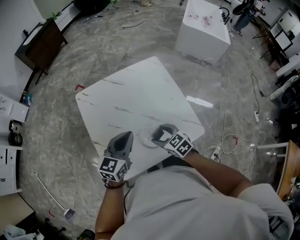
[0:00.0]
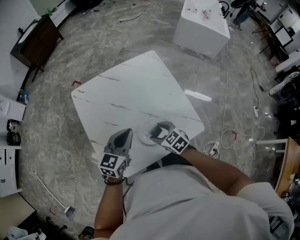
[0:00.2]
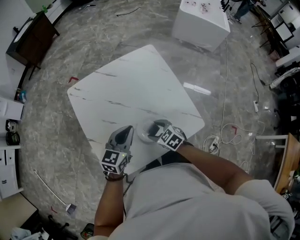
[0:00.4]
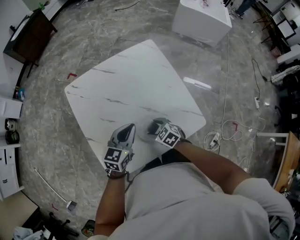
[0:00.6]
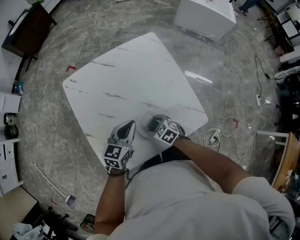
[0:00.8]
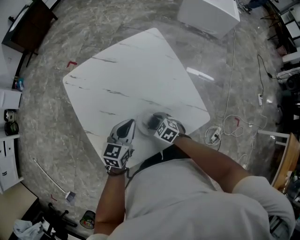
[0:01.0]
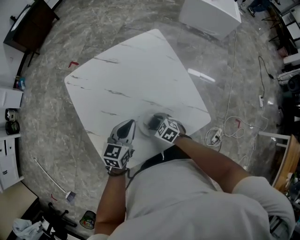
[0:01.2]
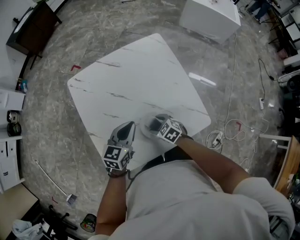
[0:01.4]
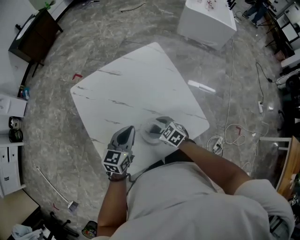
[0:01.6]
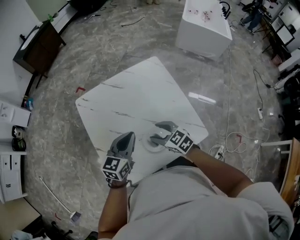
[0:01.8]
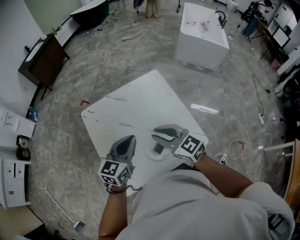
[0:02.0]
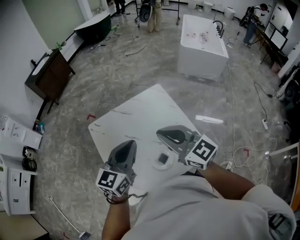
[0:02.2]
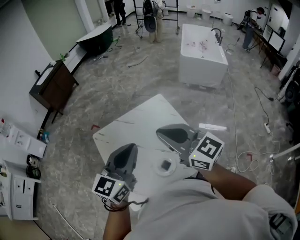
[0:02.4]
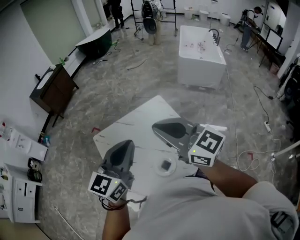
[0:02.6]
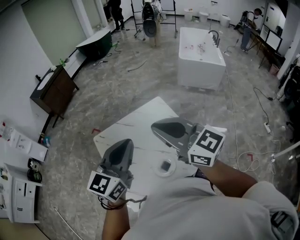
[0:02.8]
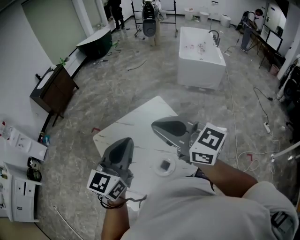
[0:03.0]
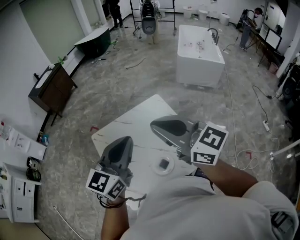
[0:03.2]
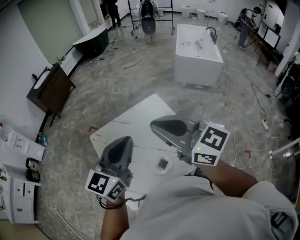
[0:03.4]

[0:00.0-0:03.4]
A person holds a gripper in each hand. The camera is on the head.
0:00.0 to 0:01.6: Both grippers travel together downward, roughly 10 cm.
0:01.6 to 0:03.4: The right gripper moves upward, approximately 50 cm, points its fingers approximately 50 degrees further upward, and closes up. Meanwhile the left gripper moves upward, some 35 cm, and swivels about 30 degrees.

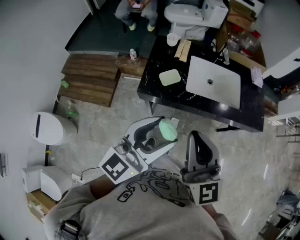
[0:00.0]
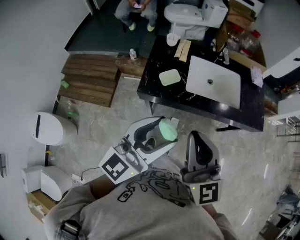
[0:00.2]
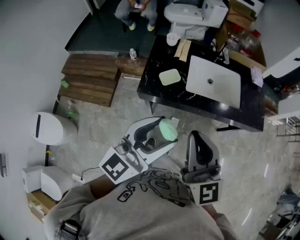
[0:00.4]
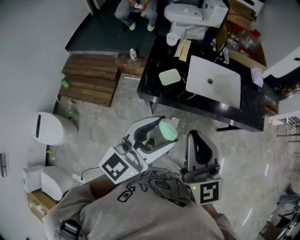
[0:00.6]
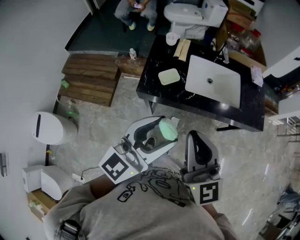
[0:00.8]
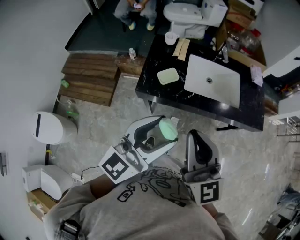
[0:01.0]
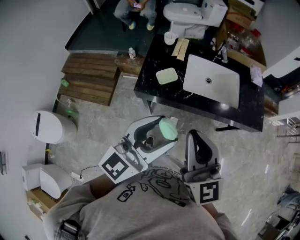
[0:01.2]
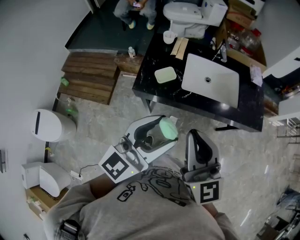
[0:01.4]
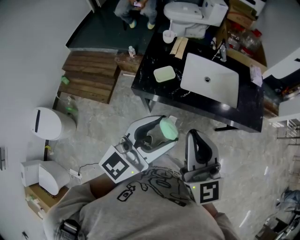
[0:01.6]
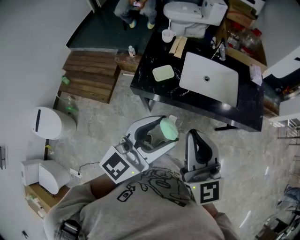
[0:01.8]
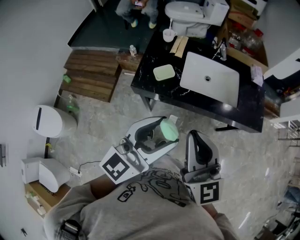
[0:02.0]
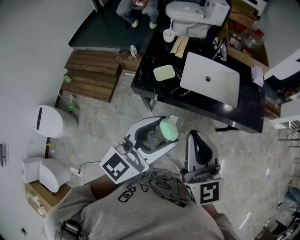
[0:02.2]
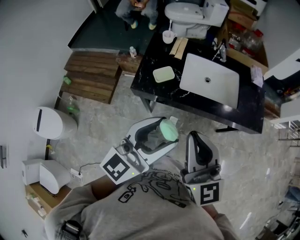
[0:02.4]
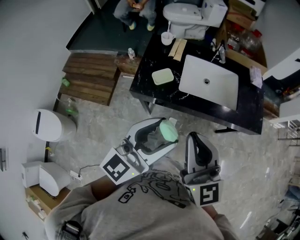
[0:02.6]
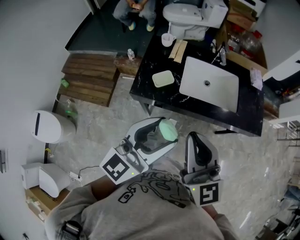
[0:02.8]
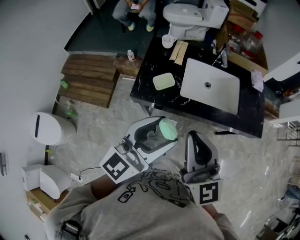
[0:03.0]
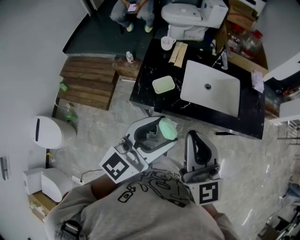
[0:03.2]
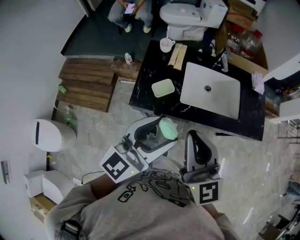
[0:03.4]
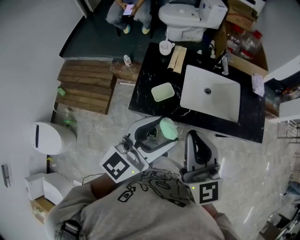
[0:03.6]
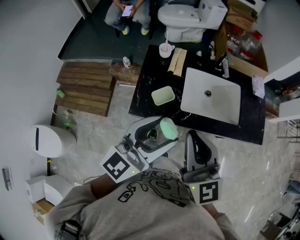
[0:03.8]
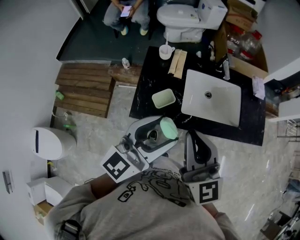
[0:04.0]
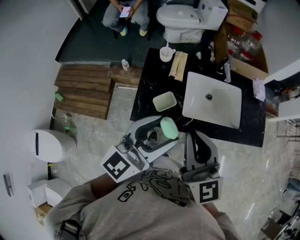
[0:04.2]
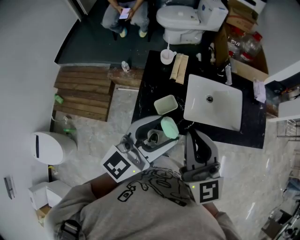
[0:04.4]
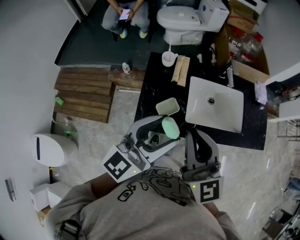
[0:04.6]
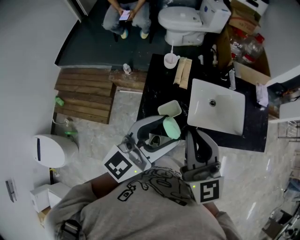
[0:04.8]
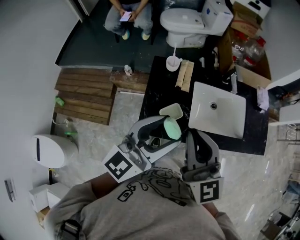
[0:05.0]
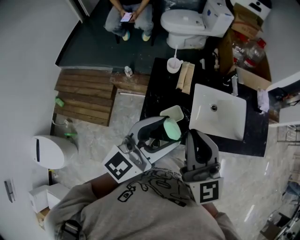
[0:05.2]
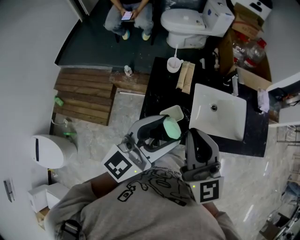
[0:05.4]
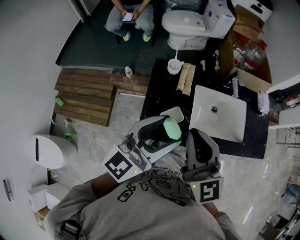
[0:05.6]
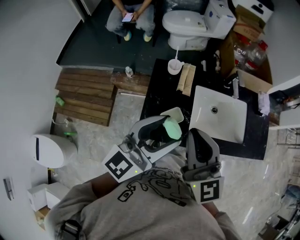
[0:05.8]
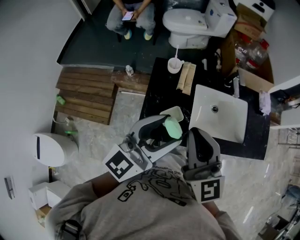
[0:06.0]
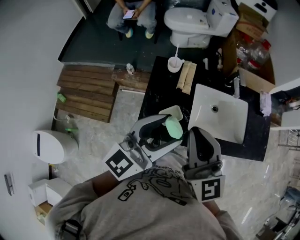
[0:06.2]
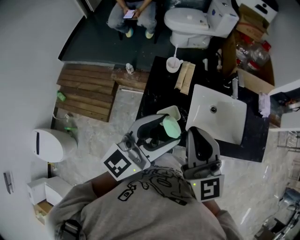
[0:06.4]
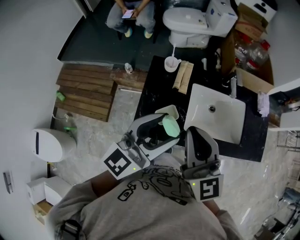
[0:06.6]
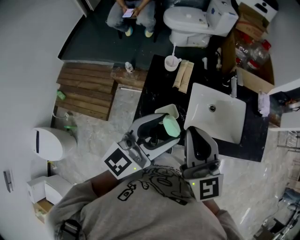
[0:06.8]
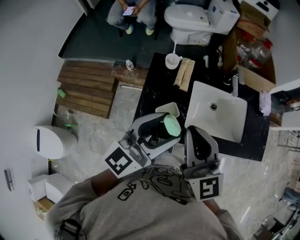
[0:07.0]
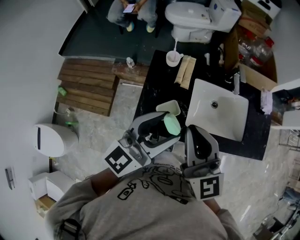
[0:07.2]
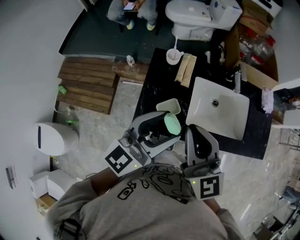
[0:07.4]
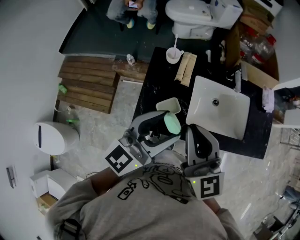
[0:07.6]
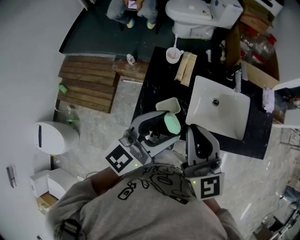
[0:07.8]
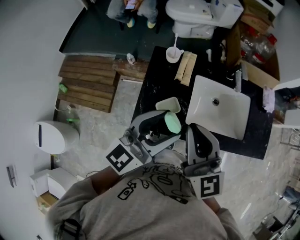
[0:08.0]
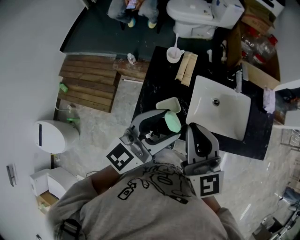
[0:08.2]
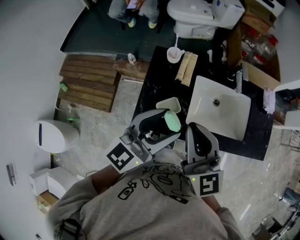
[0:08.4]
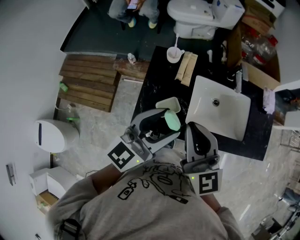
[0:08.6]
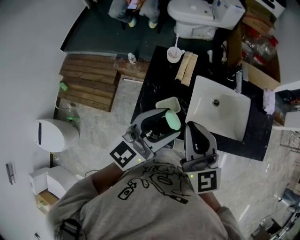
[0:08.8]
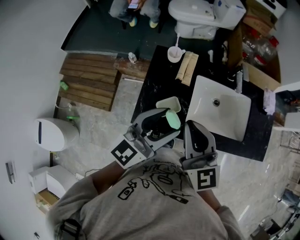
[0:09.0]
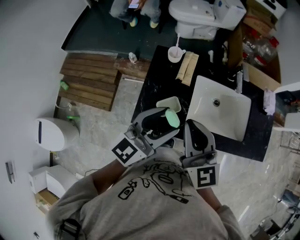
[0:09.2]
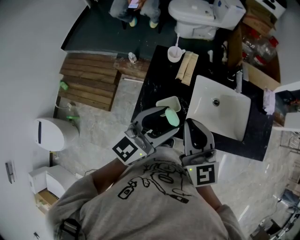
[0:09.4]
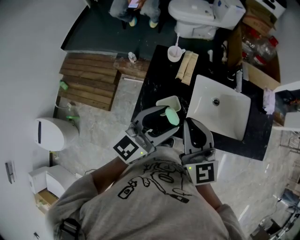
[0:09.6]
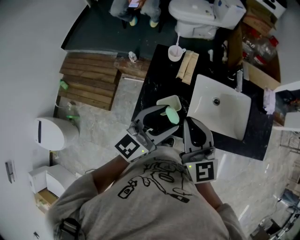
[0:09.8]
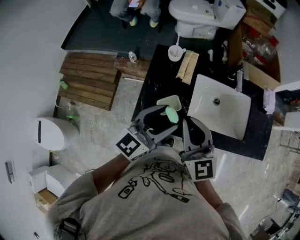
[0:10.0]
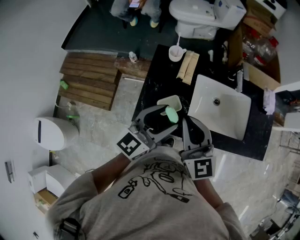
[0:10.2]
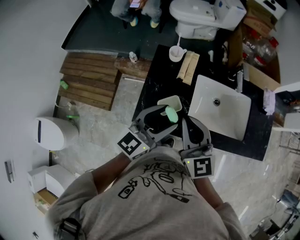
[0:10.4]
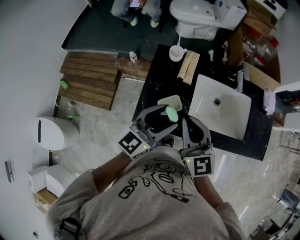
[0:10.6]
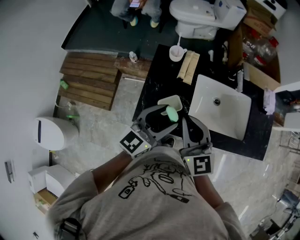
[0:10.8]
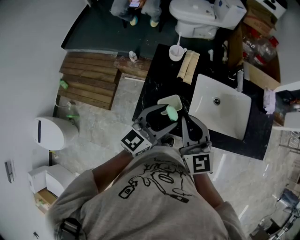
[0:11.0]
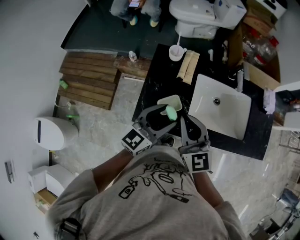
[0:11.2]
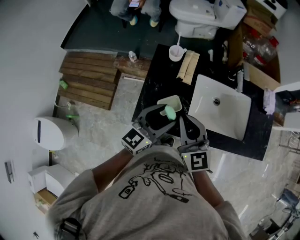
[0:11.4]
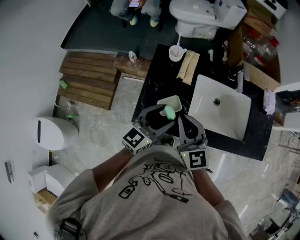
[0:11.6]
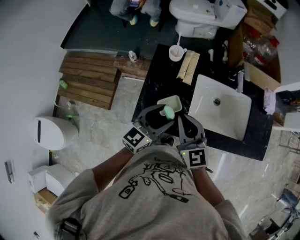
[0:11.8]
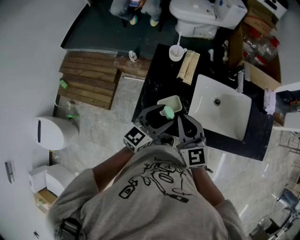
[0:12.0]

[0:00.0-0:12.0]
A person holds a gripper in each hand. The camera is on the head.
0:00.0 to 0:01.6: The left gripper moves to the right, about 5 cm.
0:01.6 to 0:03.0: The left gripper changes place by roughly 5 cm.
0:03.0 to 0:04.4: Both grippers travel together forward and to the left, approximately 15 cm.
0:04.4 to 0:06.0: The two grippers go some 5 cm forward.
0:06.0 to 0:07.6: There are only small adjustments of the grippers.
0:07.6 to 0:09.0: The grippers stay close to where they were, moving slightly.
0:09.0 to 0:10.4: The grippers stay close to where they were, moving slightly.
0:10.4 to 0:12.0: The two grippers go roughly 10 cm downward.

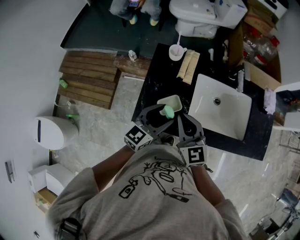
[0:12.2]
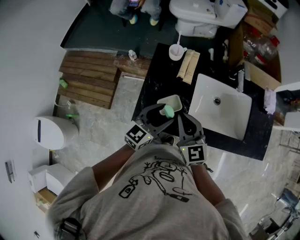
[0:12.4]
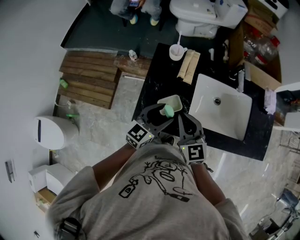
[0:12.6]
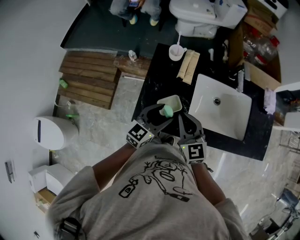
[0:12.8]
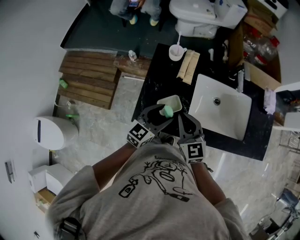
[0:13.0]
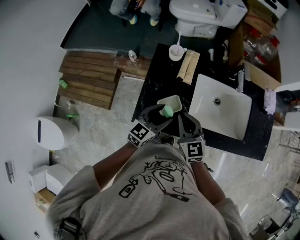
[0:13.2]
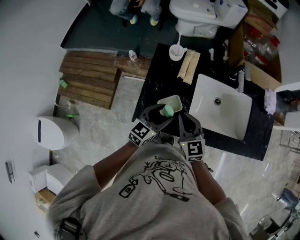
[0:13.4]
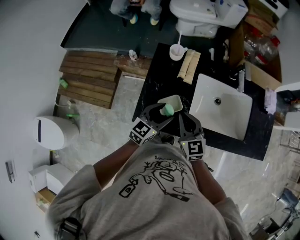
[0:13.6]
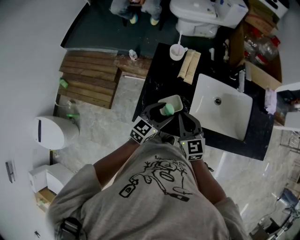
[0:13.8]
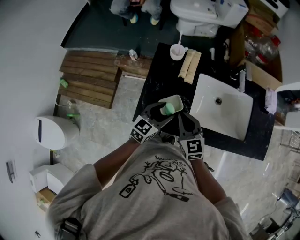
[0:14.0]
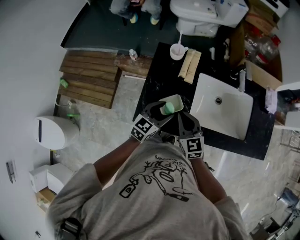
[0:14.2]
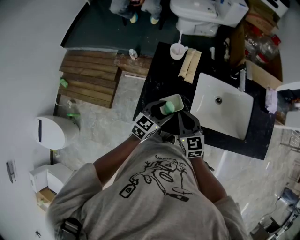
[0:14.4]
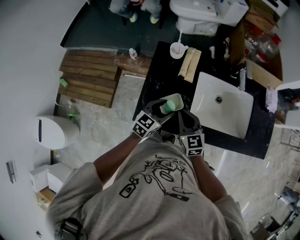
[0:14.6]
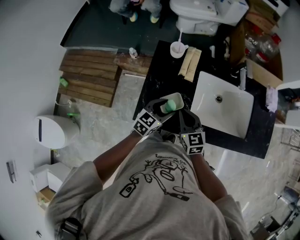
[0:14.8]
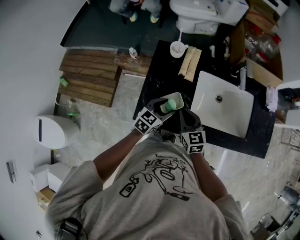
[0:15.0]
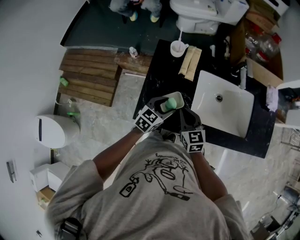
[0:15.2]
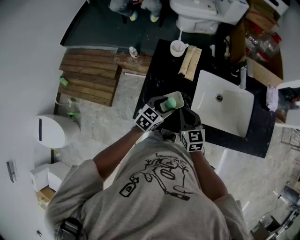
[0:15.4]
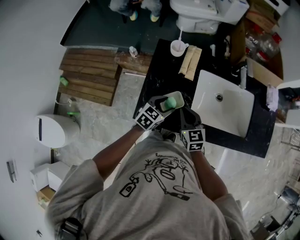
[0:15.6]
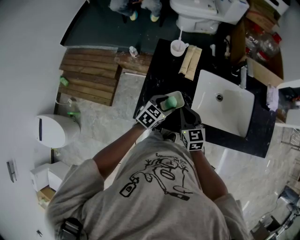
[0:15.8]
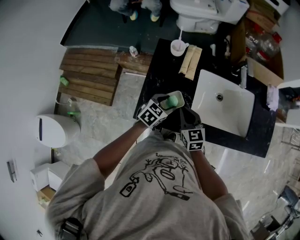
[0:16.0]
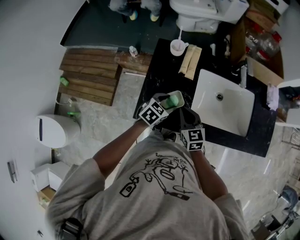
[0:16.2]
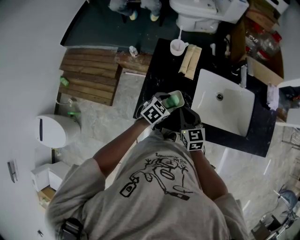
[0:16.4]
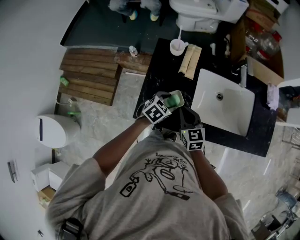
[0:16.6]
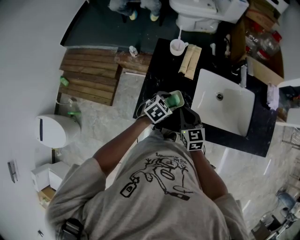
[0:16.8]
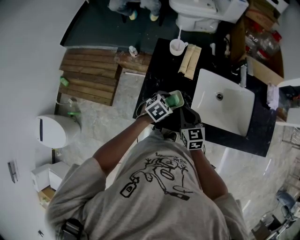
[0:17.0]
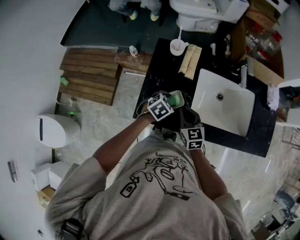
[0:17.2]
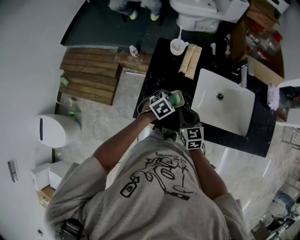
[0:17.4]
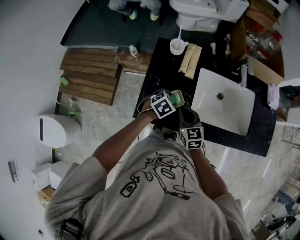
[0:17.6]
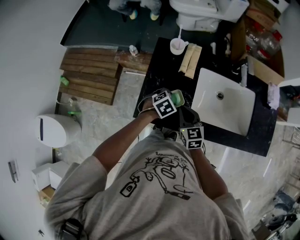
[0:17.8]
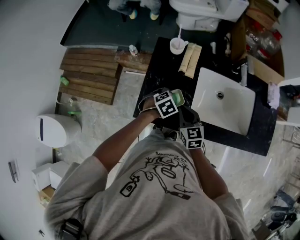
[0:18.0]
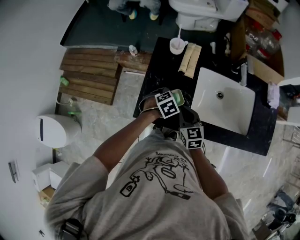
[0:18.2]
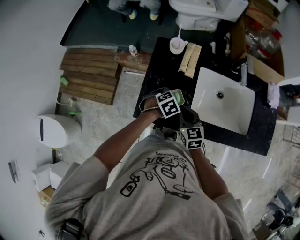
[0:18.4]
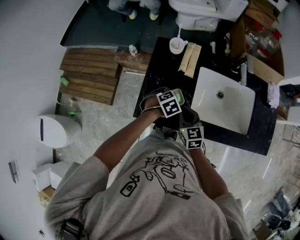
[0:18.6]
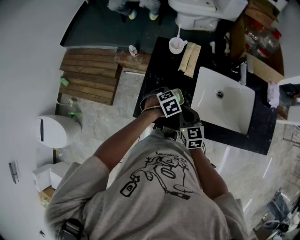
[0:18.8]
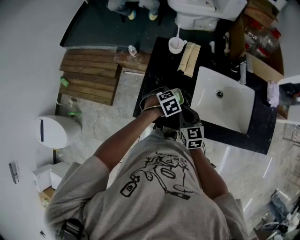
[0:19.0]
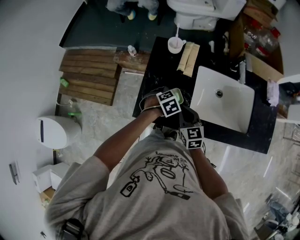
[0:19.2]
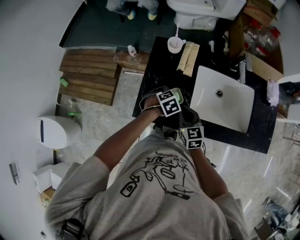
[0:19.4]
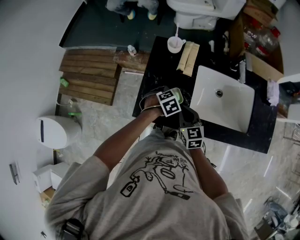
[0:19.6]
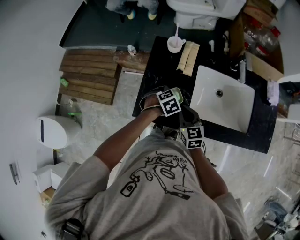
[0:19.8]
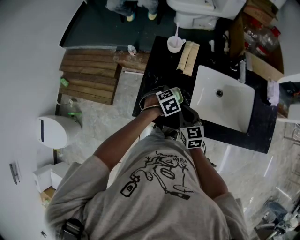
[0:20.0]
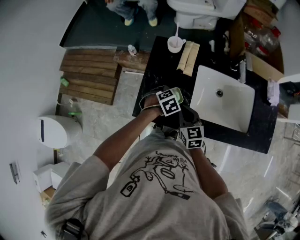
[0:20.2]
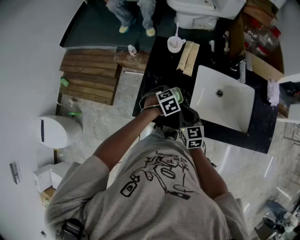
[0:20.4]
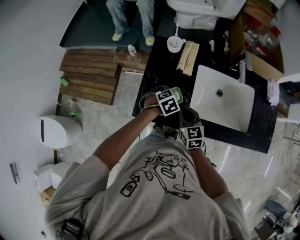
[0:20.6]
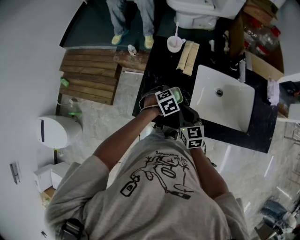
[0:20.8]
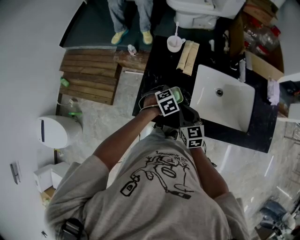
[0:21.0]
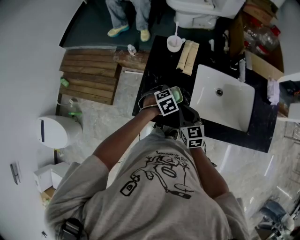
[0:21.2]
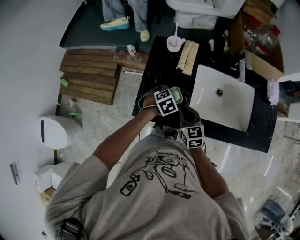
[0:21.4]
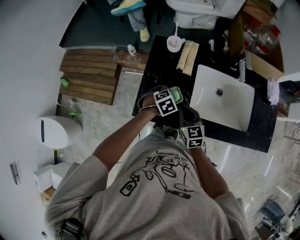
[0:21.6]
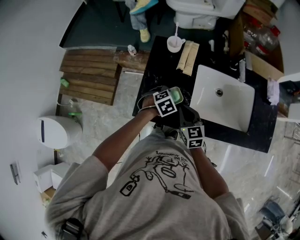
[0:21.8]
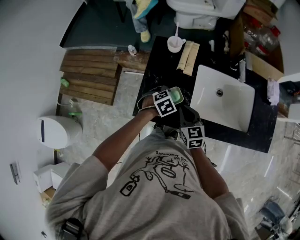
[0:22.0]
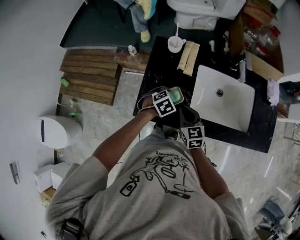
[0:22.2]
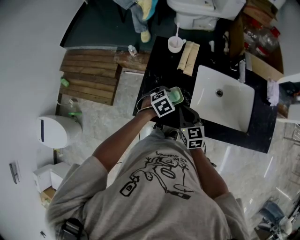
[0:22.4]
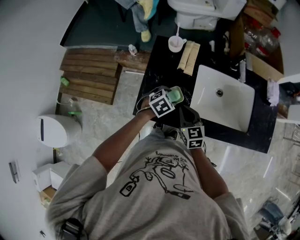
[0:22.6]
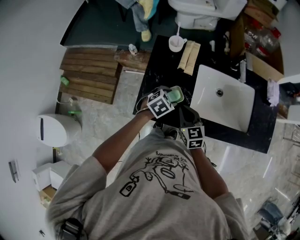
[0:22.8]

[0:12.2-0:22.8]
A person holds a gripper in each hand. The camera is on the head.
0:12.2 to 0:13.8: The two grippers go about 5 cm downward.
0:13.8 to 0:15.2: The left gripper ends up roughly 5 cm from where it was.
0:15.2 to 0:16.8: The left gripper swivels about 20 degrees.
0:16.8 to 0:18.2: The left gripper changes its angle by about 20 degrees.
0:18.2 to 0:21.2: Both grippers stay put.
0:21.2 to 0:22.8: The grippers move only a little.
